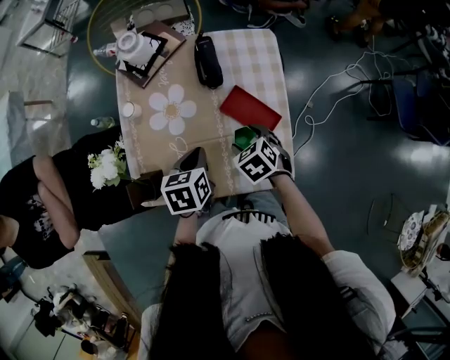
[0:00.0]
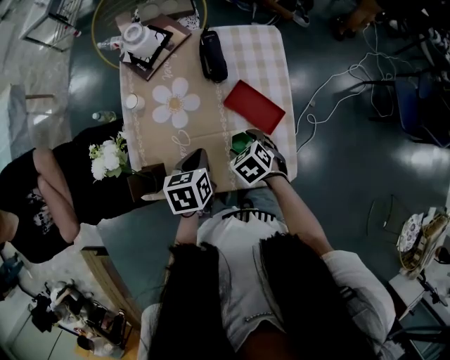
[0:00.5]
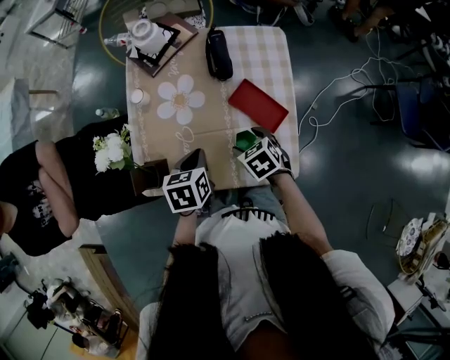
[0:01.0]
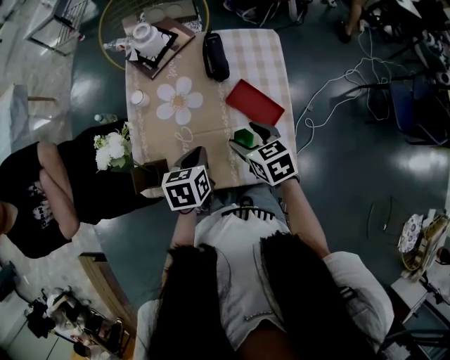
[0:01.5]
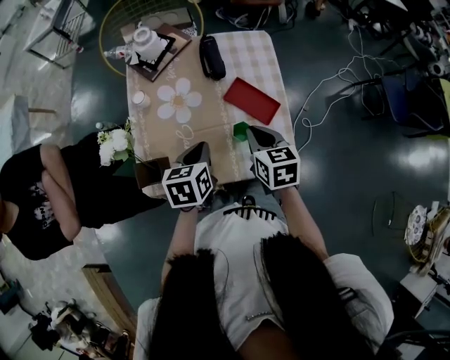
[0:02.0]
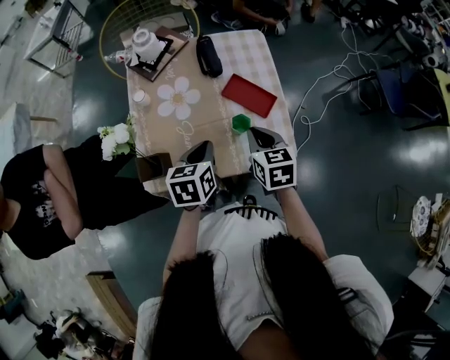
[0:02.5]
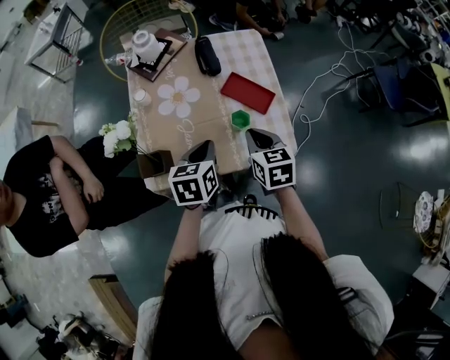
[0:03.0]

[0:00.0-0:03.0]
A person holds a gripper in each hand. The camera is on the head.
0:00.0 to 0:01.5: The right gripper goes some 5 cm upward, and swivels about 20 degrees.
0:01.5 to 0:03.0: The right gripper goes roughly 10 cm backward, turns by some 20 degrees, and closes up. The left gripper travels backward and upward by about 5 cm.

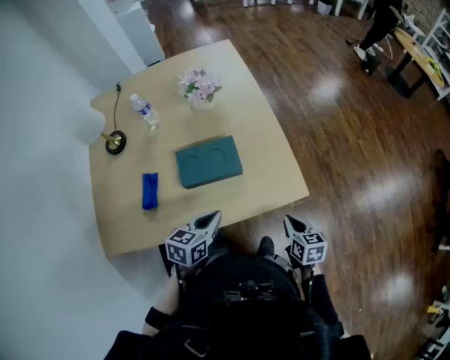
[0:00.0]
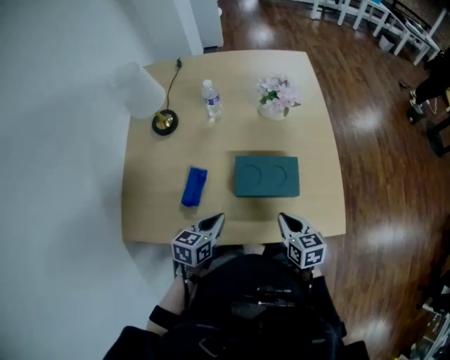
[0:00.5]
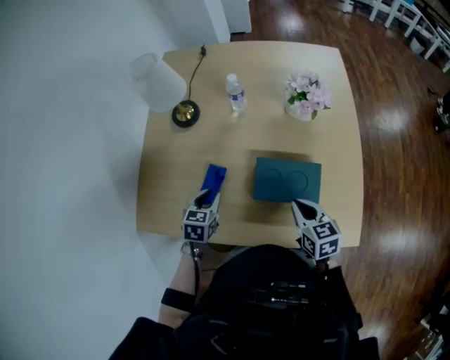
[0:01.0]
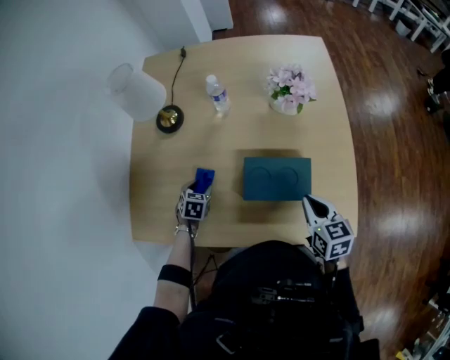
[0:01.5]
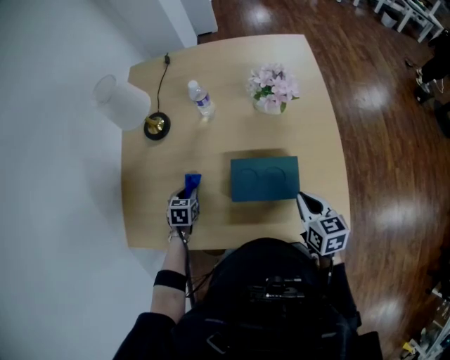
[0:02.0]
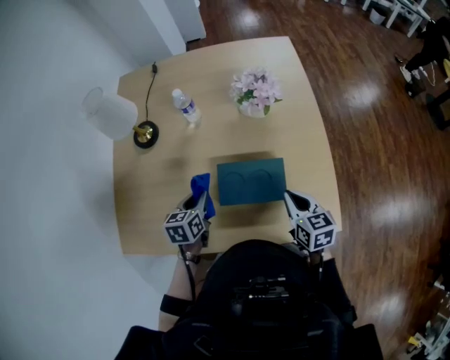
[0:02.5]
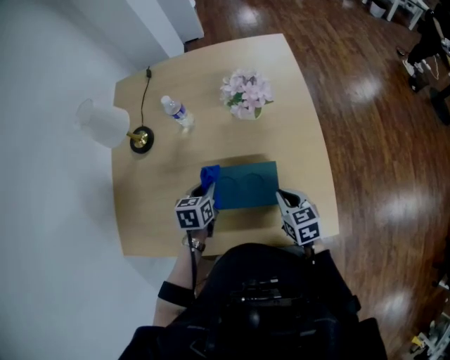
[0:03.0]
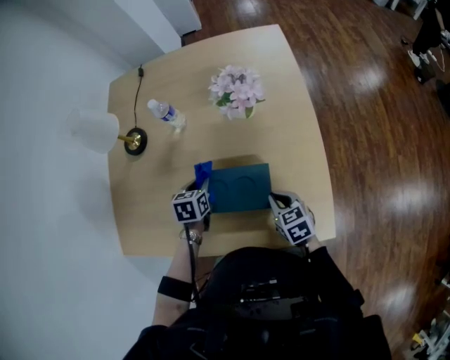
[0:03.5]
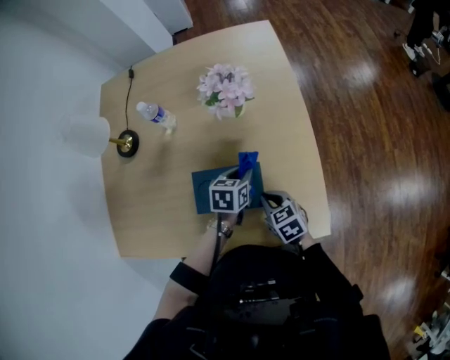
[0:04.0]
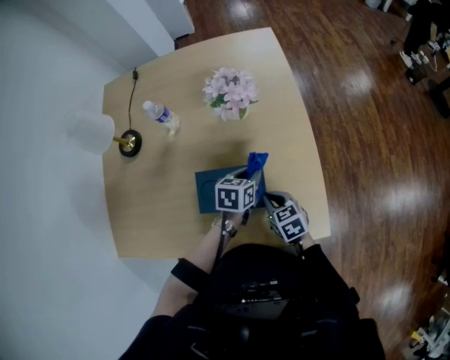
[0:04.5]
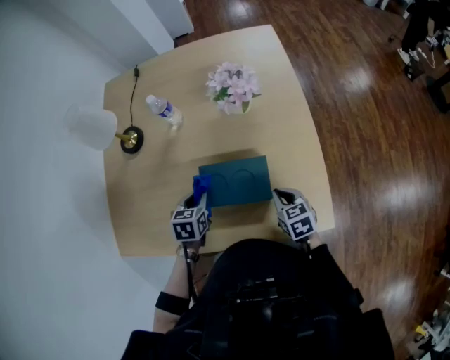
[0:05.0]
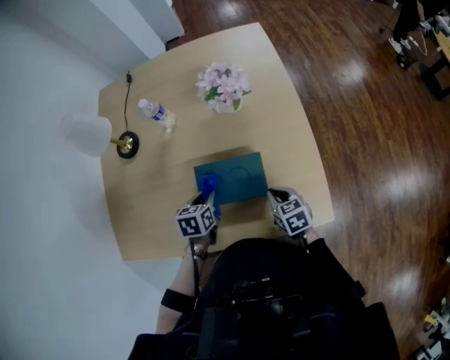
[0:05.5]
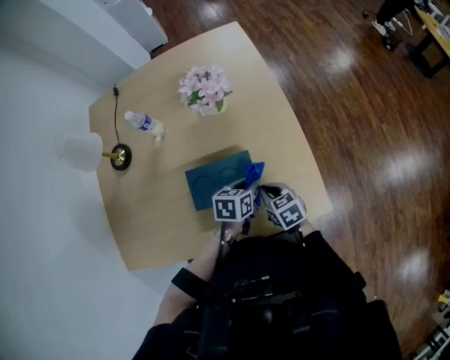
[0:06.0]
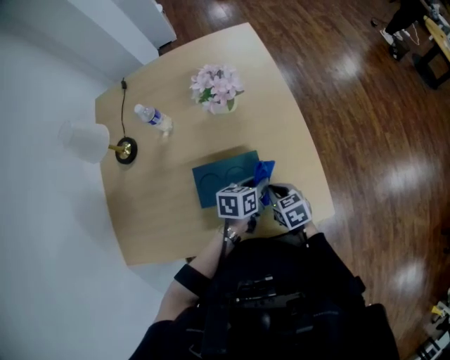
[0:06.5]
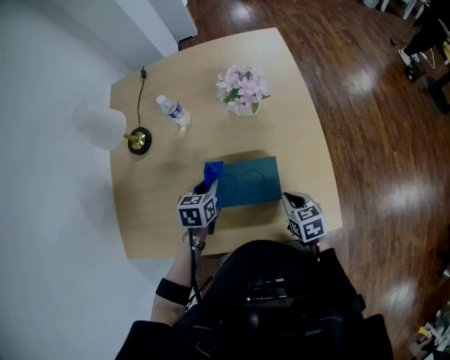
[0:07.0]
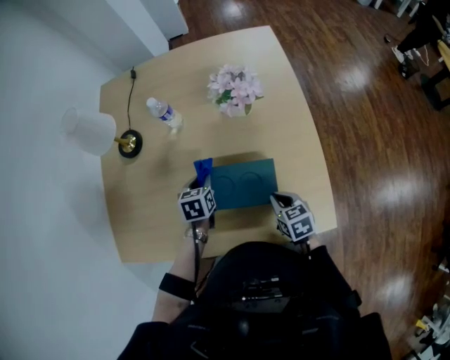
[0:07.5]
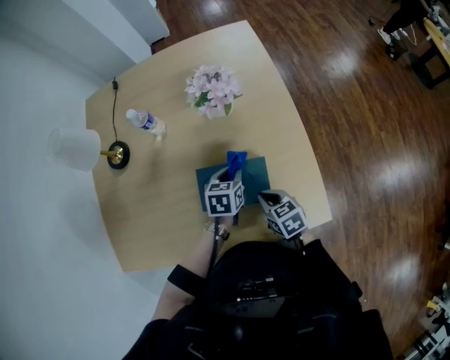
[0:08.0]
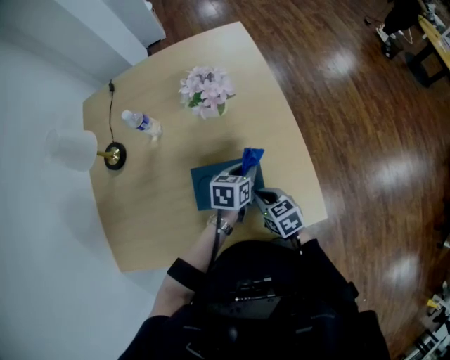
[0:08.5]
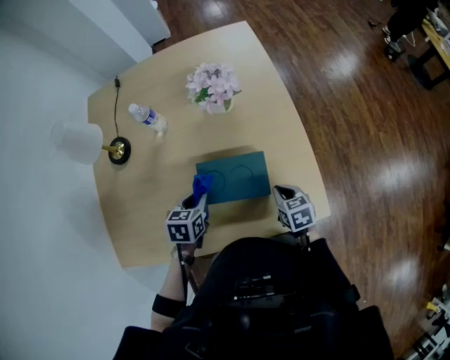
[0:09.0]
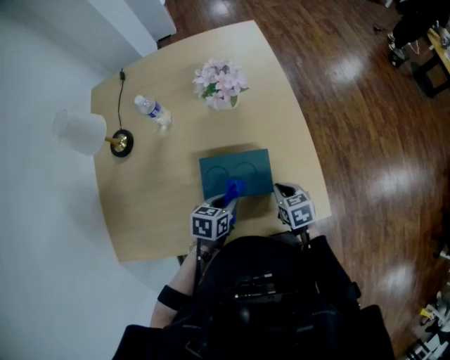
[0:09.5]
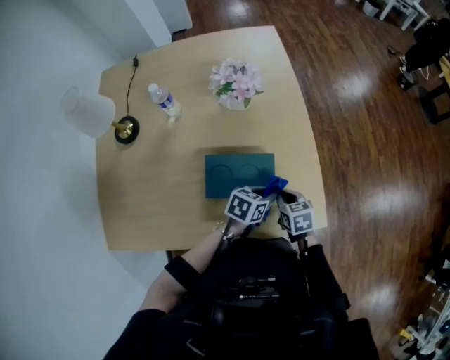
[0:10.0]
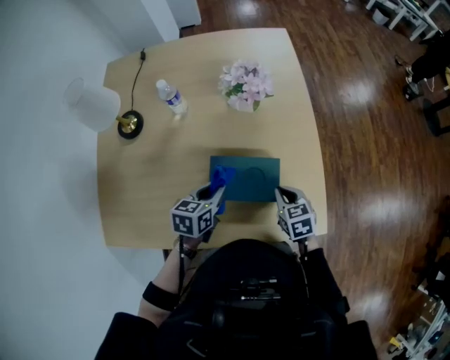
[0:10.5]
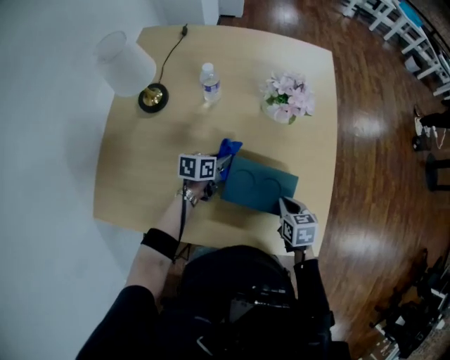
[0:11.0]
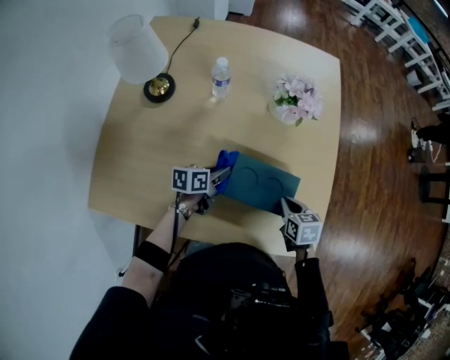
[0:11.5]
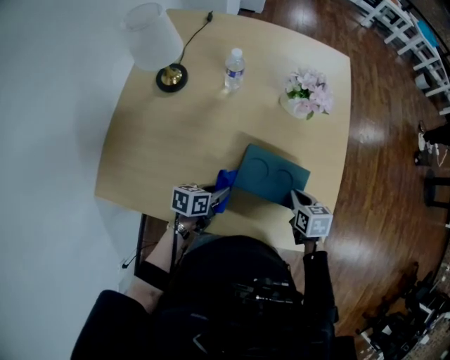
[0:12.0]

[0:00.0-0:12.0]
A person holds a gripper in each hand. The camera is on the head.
0:00.0 to 0:02.0: The left gripper ends up roughly 40 cm from where it was, turns by about 40 degrees, and opens, then closes again. The right gripper changes place by approximately 25 cm.
0:02.0 to 0:04.0: The right gripper heads downward, covering approximately 10 cm. Meanwhile the left gripper moves to the right, roughly 35 cm, and turns by about 20 degrees.
0:04.0 to 0:06.0: The left gripper is displaced backward by some 10 cm, and goes to the left and returns, roughly 20 cm each way.
0:06.0 to 0:08.0: The left gripper is displaced forward by some 10 cm, and goes to the left and returns, approximately 20 cm each way.
0:08.0 to 0:10.0: The left gripper swings left and right, about 20 cm each way, with 2 reversals, and turns by approximately 30 degrees; the right gripper heads to the right, covering some 5 cm.
0:10.0 to 0:12.0: The left gripper moves to the left, approximately 25 cm, and turns by approximately 30 degrees. The right gripper goes roughly 5 cm to the left.

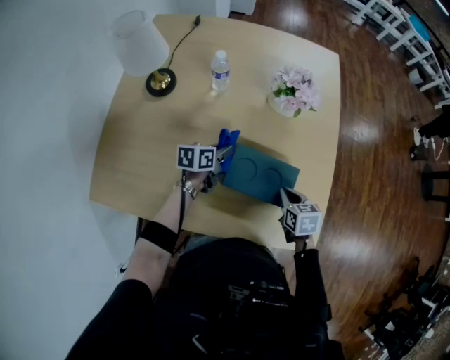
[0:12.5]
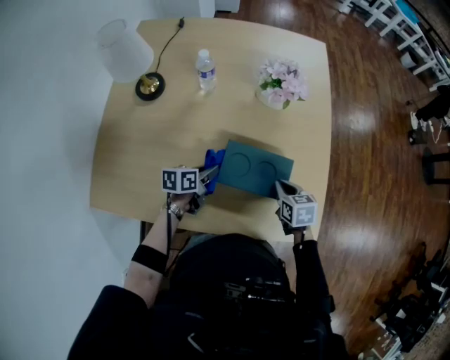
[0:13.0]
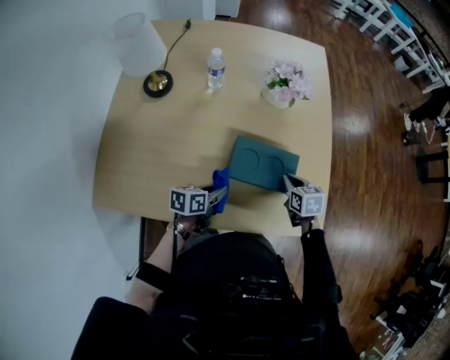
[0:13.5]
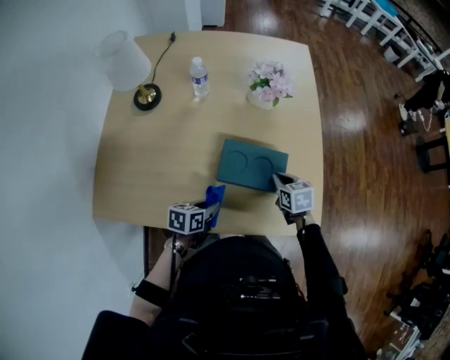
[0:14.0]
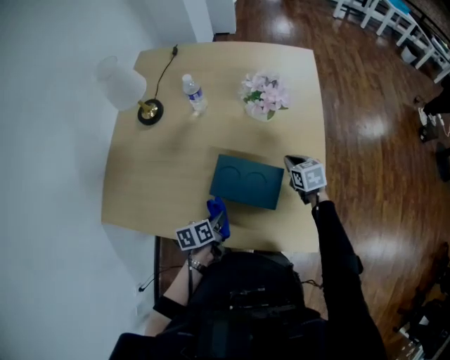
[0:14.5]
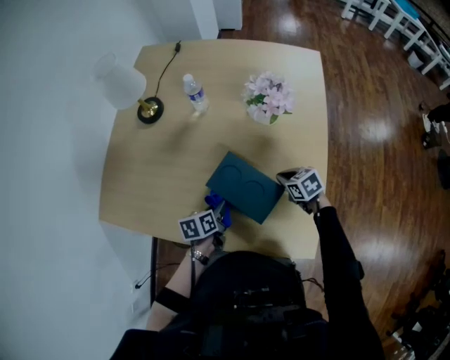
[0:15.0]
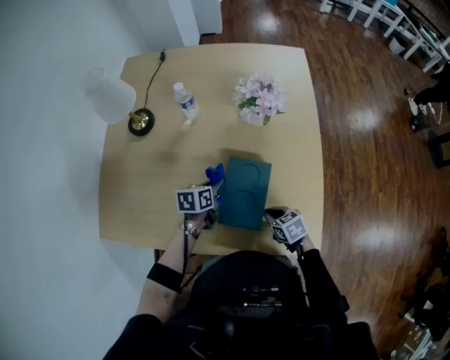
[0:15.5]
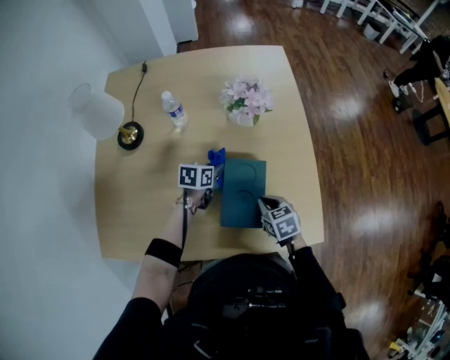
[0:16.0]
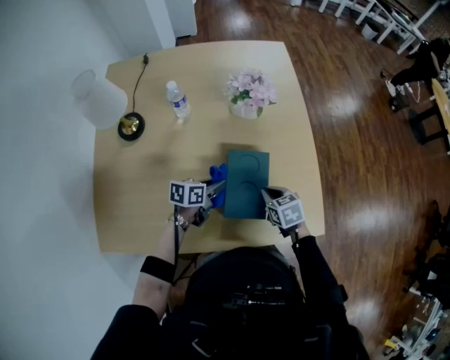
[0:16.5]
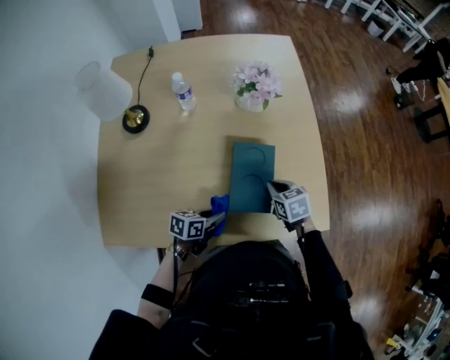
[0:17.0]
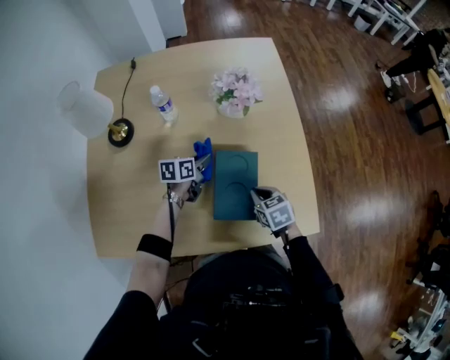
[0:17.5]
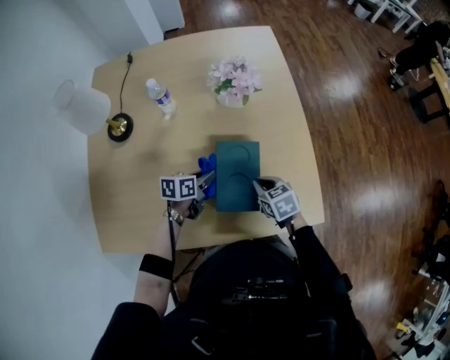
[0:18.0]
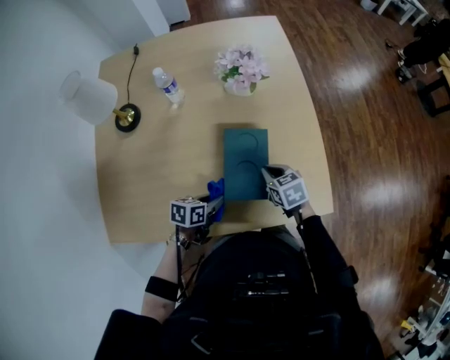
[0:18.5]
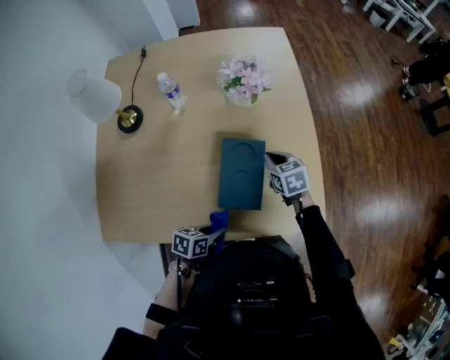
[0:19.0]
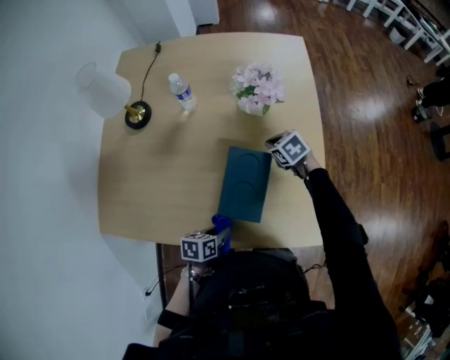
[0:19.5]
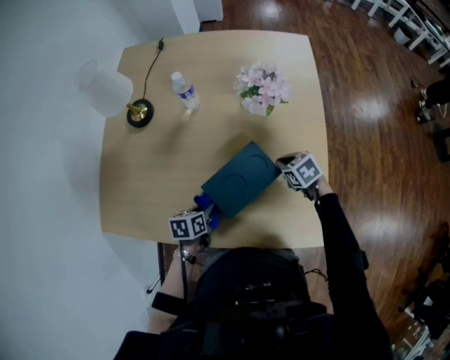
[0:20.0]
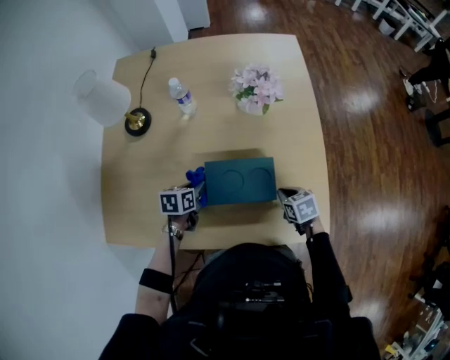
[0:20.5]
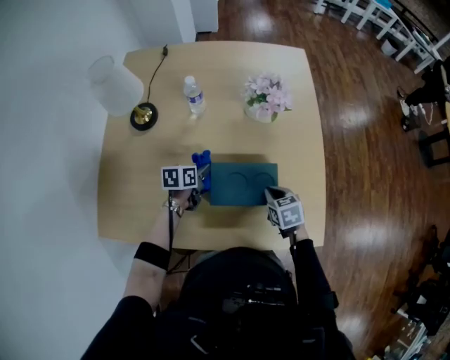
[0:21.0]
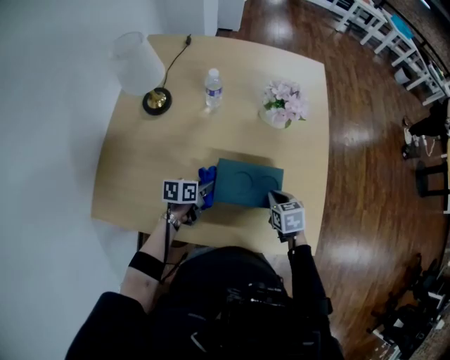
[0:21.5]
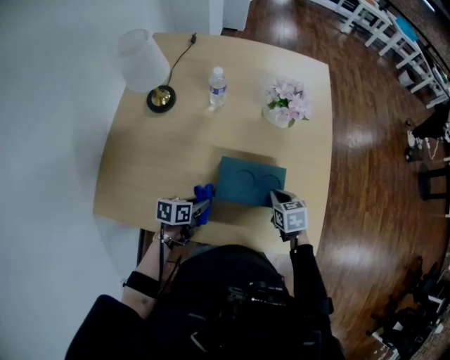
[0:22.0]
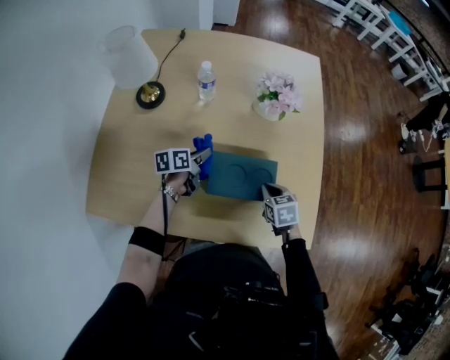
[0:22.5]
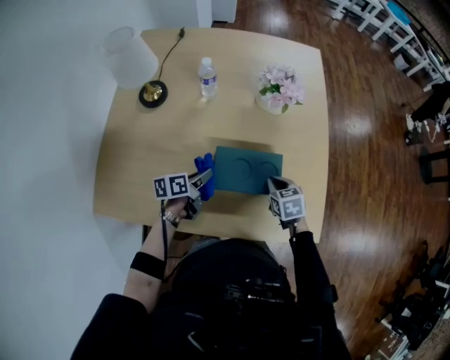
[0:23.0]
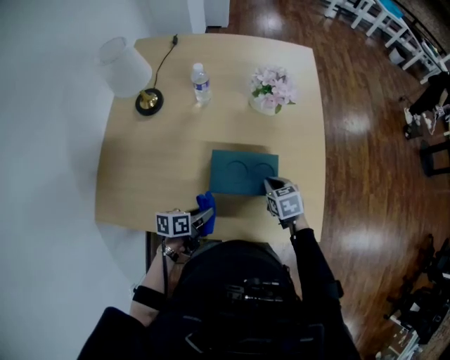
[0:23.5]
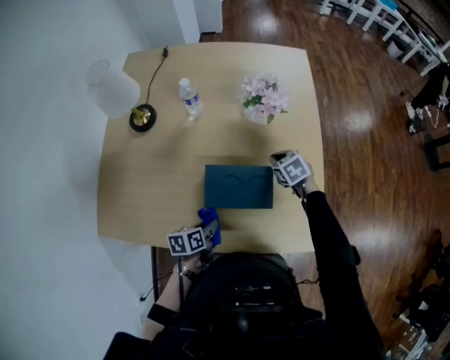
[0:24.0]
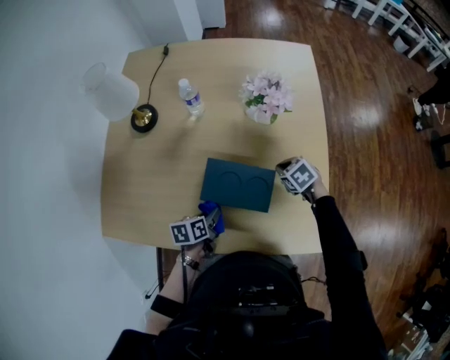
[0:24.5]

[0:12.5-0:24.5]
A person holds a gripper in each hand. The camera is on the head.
0:12.5 to 0:14.5: The left gripper moves backward, about 20 cm, and swivels roughly 20 degrees. Meanwhile the right gripper goes about 15 cm forward.
0:14.5 to 0:16.5: The left gripper turns by about 40 degrees. The right gripper moves approximately 15 cm.
0:16.5 to 0:18.5: The left gripper moves forward and backward over about 25 cm, changing direction 2 times.
0:18.5 to 0:20.5: The left gripper ends up some 15 cm from where it was, and turns by about 20 degrees.
0:20.5 to 0:22.5: The left gripper moves forward and backward over approximately 15 cm, changing direction 2 times, and swivels roughly 30 degrees, while the right gripper shifts about 5 cm to the left.
0:22.5 to 0:24.5: The right gripper is displaced forward by roughly 10 cm, and rotates roughly 20 degrees. Meanwhile the left gripper goes roughly 15 cm backward.
